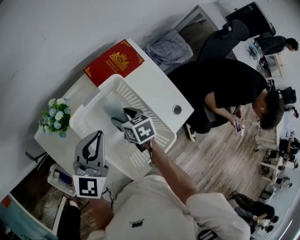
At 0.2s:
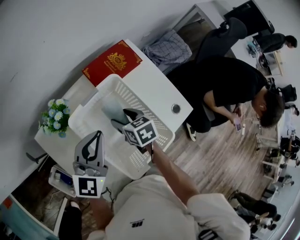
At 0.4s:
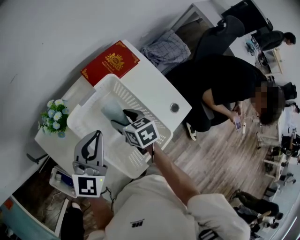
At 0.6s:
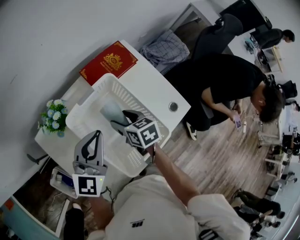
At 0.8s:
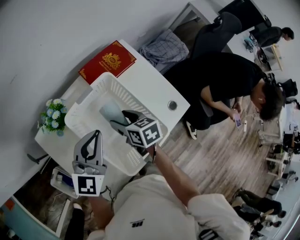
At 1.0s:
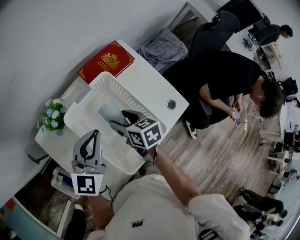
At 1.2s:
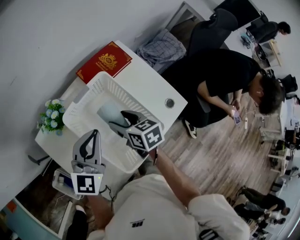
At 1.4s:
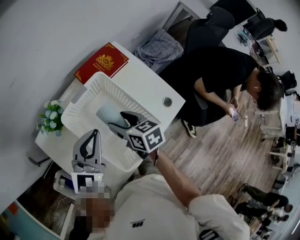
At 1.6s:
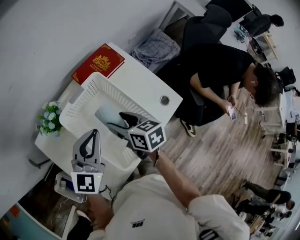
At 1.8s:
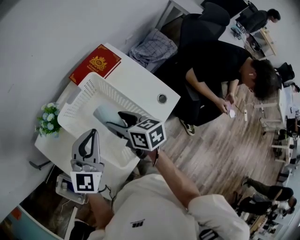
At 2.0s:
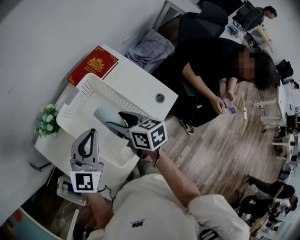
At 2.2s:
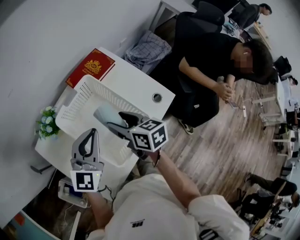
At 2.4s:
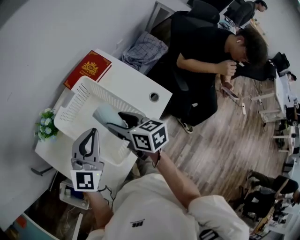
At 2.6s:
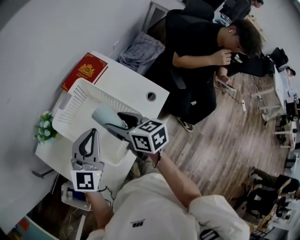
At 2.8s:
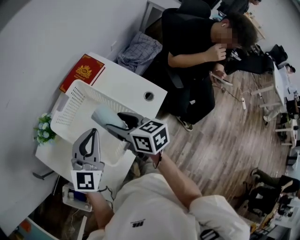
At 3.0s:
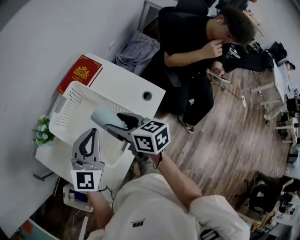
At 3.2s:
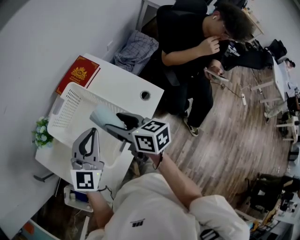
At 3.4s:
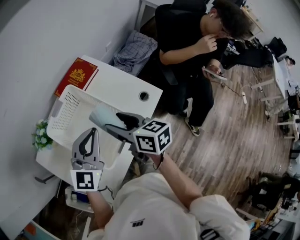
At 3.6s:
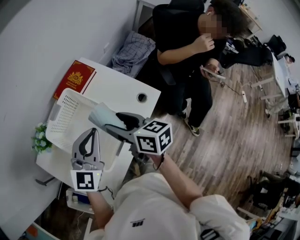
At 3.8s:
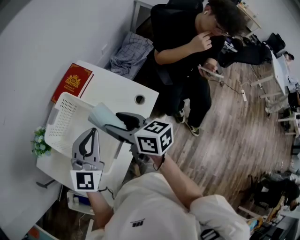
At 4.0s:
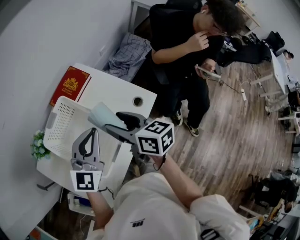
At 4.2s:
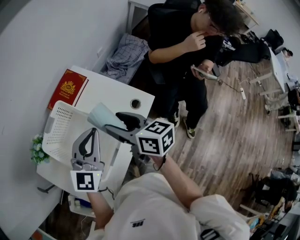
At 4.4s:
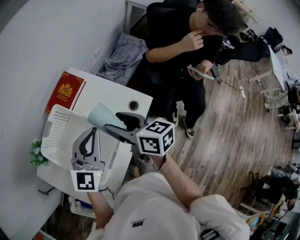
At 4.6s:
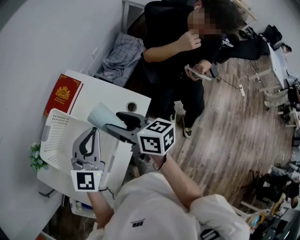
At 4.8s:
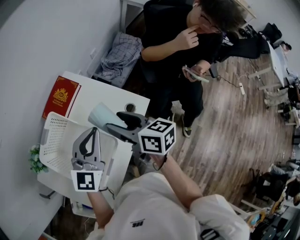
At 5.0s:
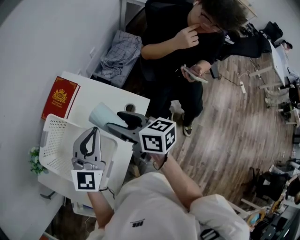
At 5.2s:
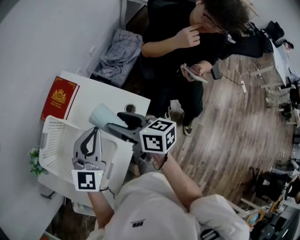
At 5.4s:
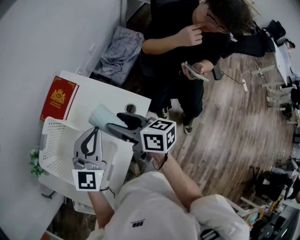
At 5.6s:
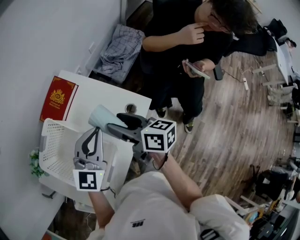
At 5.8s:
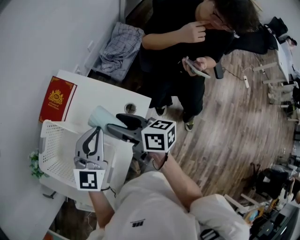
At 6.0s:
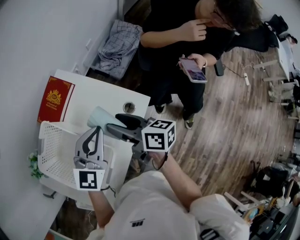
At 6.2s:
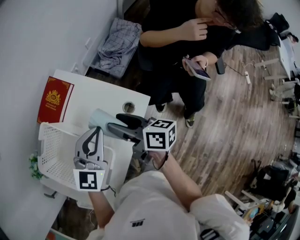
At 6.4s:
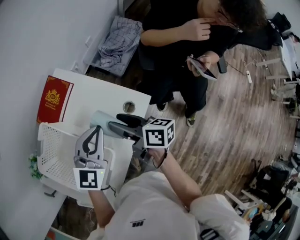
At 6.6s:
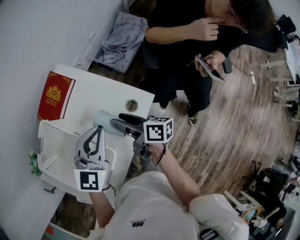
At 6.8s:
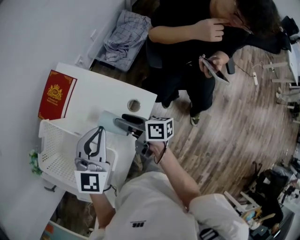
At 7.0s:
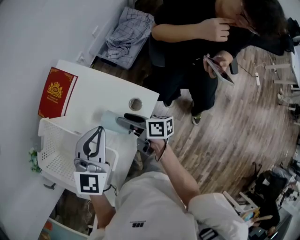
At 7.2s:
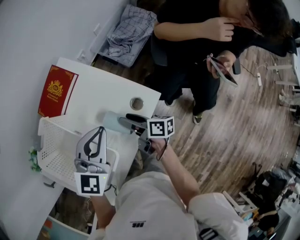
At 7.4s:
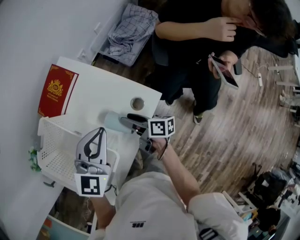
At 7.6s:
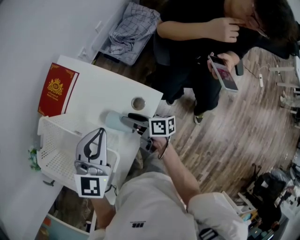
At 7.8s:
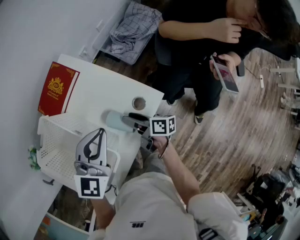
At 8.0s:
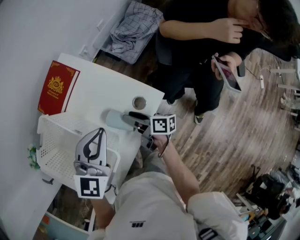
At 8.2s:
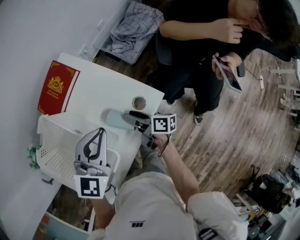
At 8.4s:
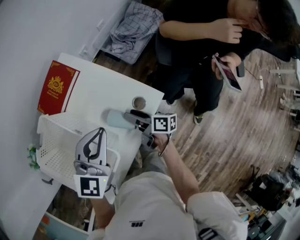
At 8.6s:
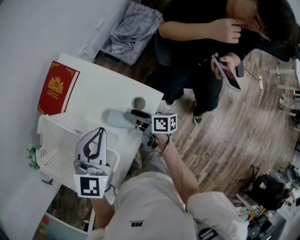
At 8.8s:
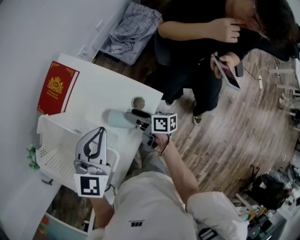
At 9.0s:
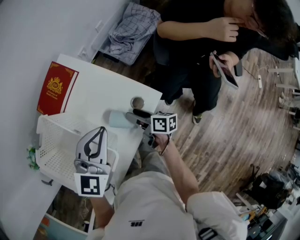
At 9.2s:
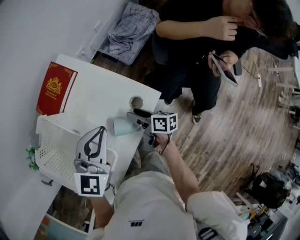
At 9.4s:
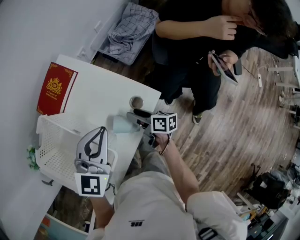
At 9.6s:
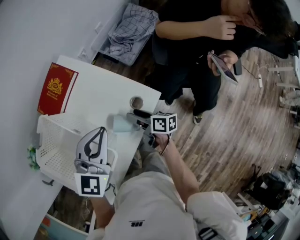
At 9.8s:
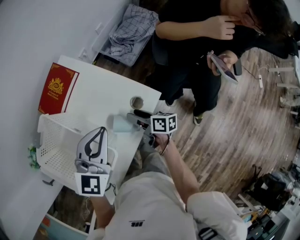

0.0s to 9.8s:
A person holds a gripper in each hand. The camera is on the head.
0.0s to 1.4s: The left gripper changes place by about 5 cm. Meanwhile the right gripper moves upward and backward, about 10 cm.
1.4s to 2.8s: The left gripper heads to the right, covering some 5 cm, while the right gripper travels upward, to the right and backward by approximately 10 cm.
2.8s to 4.2s: Both grippers travel together to the right, some 10 cm.
4.2s to 5.6s: Both grippers travel together to the right and forward, some 10 cm.
5.6s to 7.0s: The right gripper heads downward, covering approximately 15 cm, and swivels approximately 20 degrees.
7.0s to 8.4s: The right gripper moves downward, some 5 cm.
8.4s to 9.8s: The grippers stay close to where they were, moving slightly.

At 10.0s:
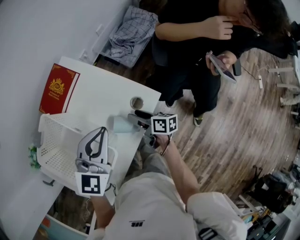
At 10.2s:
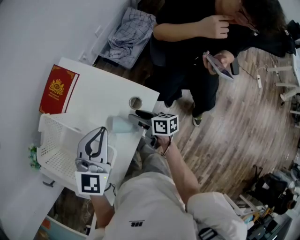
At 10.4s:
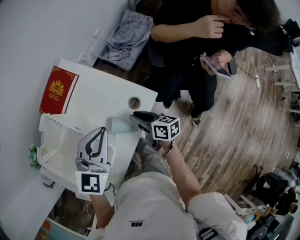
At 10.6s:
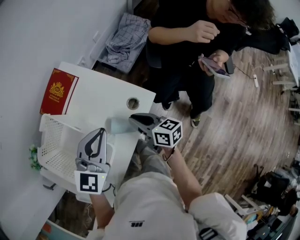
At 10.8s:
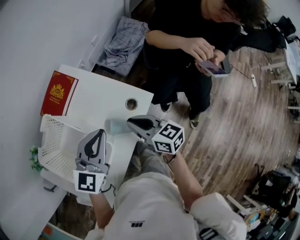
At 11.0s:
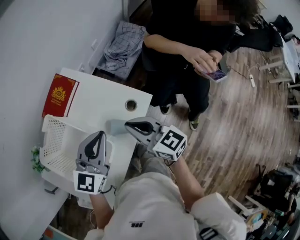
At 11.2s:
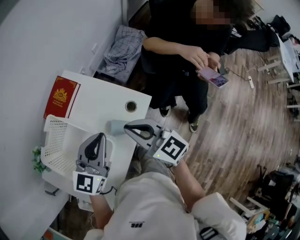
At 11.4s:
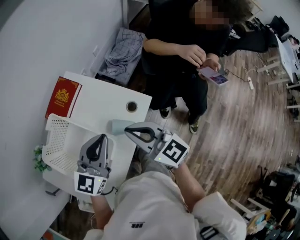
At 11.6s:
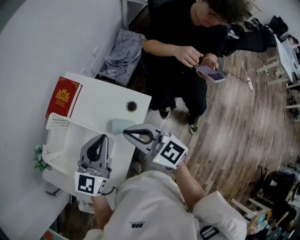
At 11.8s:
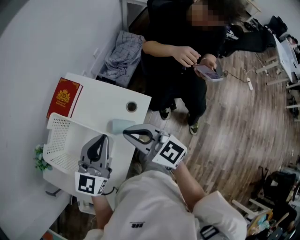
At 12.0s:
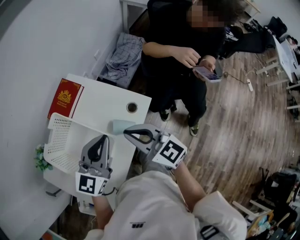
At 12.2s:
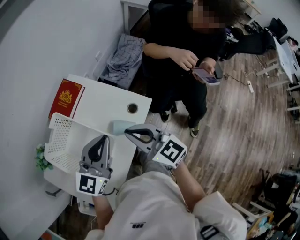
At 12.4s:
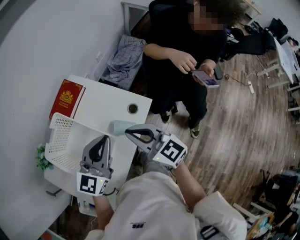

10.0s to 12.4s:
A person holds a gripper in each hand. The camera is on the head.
10.0s to 11.2s: The left gripper is displaced upward by approximately 5 cm; the right gripper travels upward by about 25 cm, rotates around the line of its fingers by approximately 60 degrees, counterclockwise from behind, and closes.
11.2s to 12.4s: The grippers stay close to where they were, moving slightly.

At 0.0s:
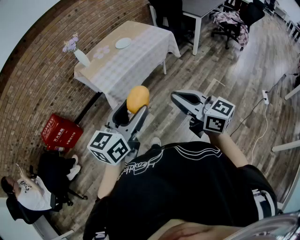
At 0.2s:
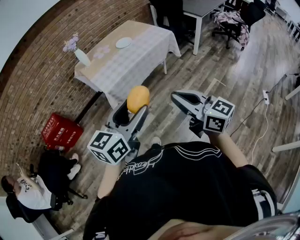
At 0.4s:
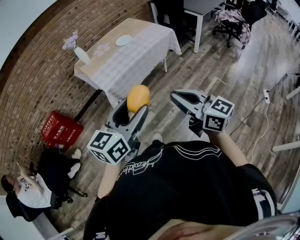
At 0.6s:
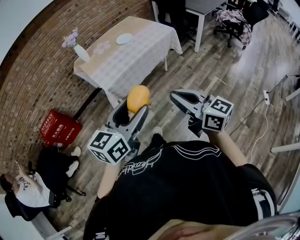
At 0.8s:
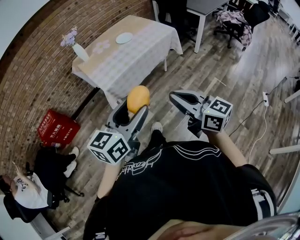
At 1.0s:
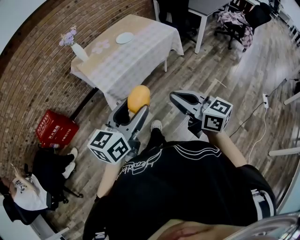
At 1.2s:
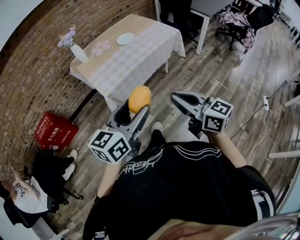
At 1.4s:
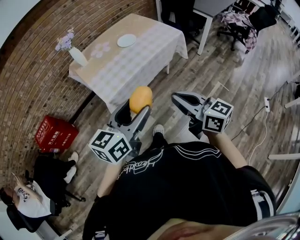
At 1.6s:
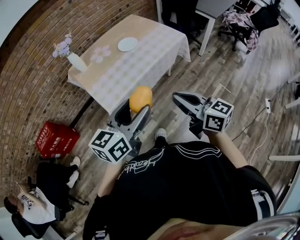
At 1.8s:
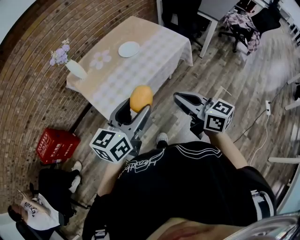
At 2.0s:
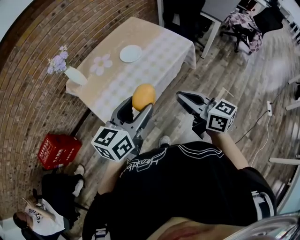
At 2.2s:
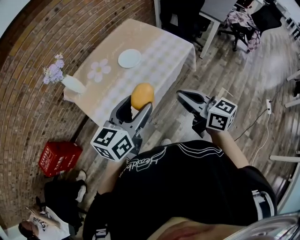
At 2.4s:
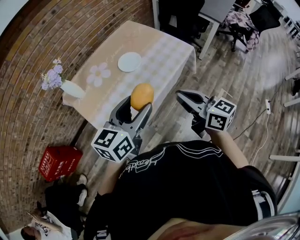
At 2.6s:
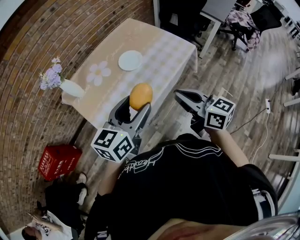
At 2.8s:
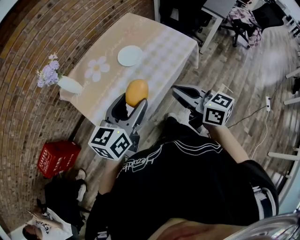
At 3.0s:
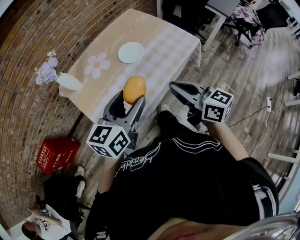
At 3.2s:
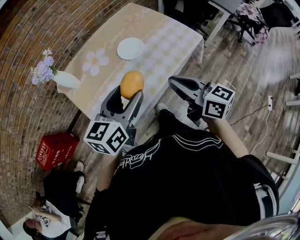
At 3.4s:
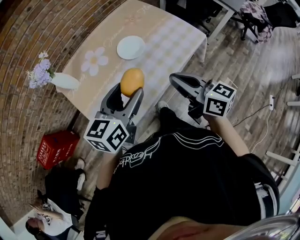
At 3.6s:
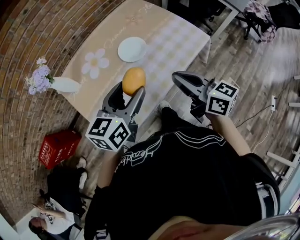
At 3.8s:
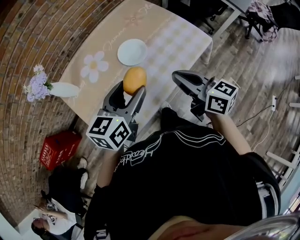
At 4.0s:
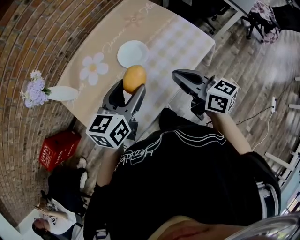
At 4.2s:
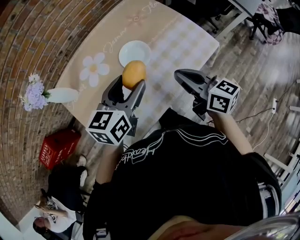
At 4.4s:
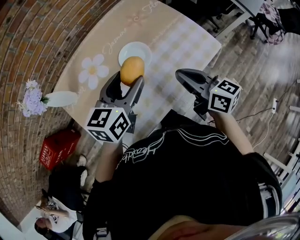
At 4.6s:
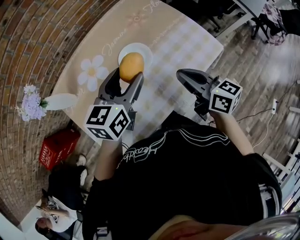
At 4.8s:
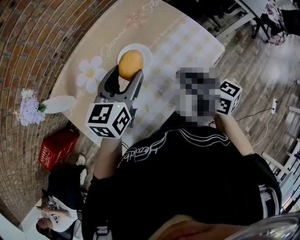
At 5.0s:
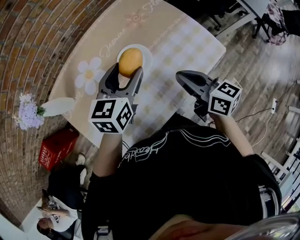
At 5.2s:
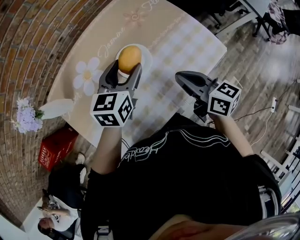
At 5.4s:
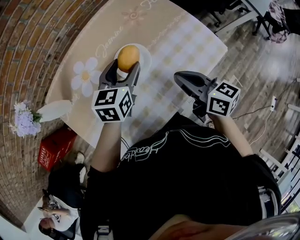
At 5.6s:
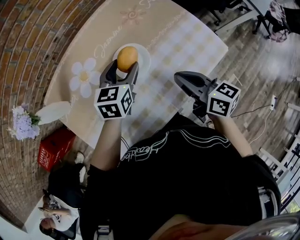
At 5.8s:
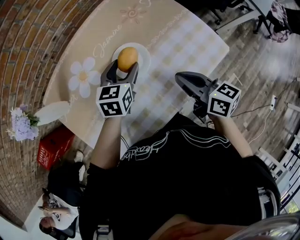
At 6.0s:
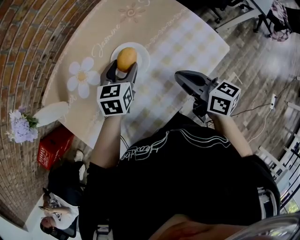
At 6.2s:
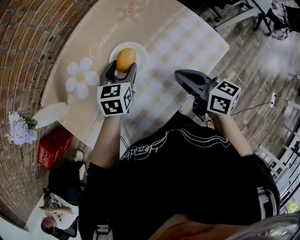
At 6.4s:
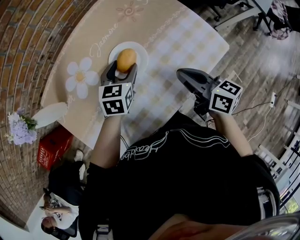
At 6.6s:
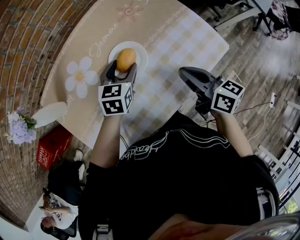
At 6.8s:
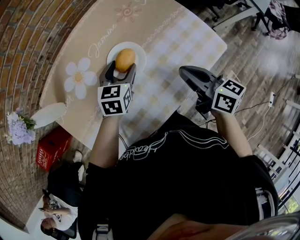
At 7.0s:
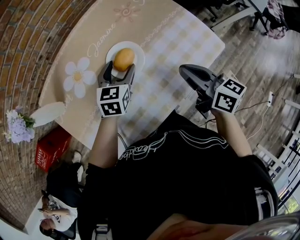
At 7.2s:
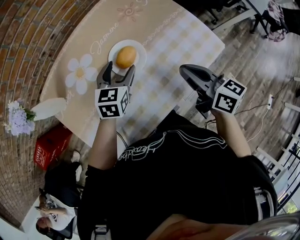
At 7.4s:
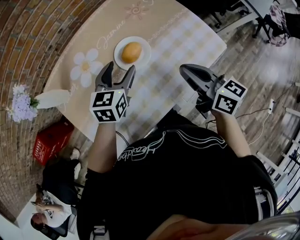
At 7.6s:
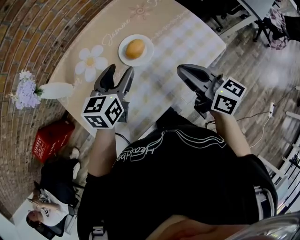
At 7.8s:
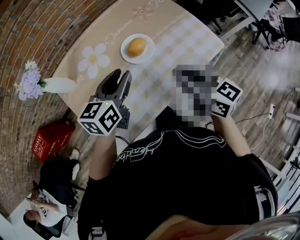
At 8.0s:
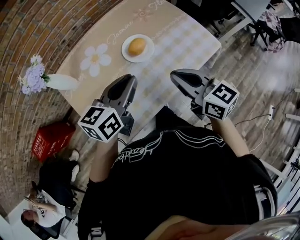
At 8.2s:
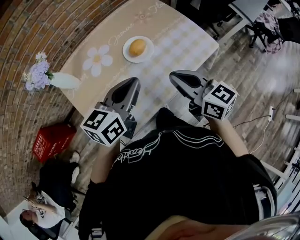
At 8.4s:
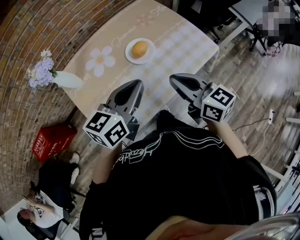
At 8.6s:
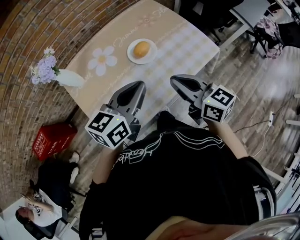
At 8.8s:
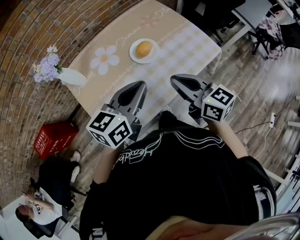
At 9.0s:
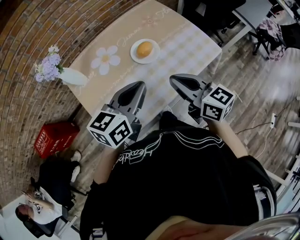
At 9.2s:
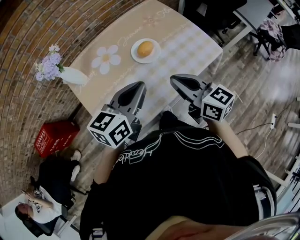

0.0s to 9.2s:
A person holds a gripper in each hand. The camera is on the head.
0.0s to 1.6s: Both grippers travel together forward, roughly 25 cm.
1.6s to 3.0s: Both grippers travel together forward, approximately 25 cm.
3.0s to 4.6s: The left gripper is displaced forward by some 25 cm. The right gripper shifts about 25 cm forward and downward.
4.6s to 6.2s: The right gripper moves downward, some 5 cm; the left gripper is displaced downward and forward by some 20 cm.
6.2s to 7.6s: The left gripper heads upward and backward, covering approximately 15 cm. Meanwhile the right gripper travels upward by roughly 10 cm.
7.6s to 9.2s: The right gripper is displaced backward and to the left by some 10 cm. Meanwhile the left gripper is displaced backward and upward by roughly 20 cm, and closes its fingers.

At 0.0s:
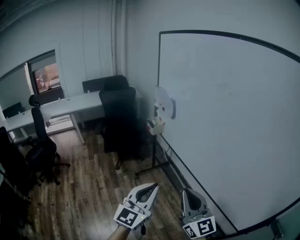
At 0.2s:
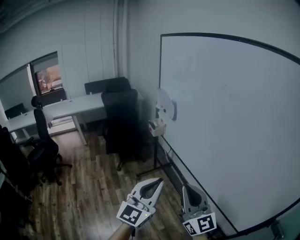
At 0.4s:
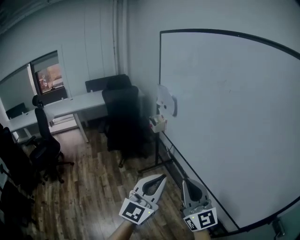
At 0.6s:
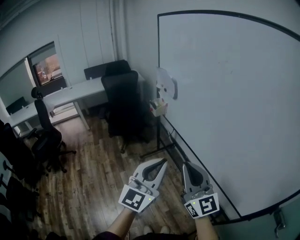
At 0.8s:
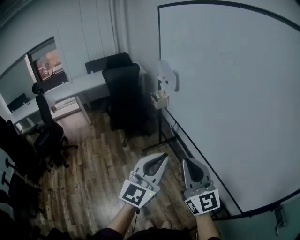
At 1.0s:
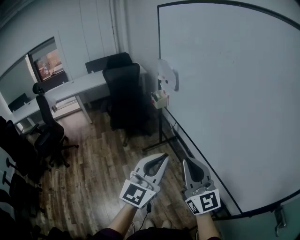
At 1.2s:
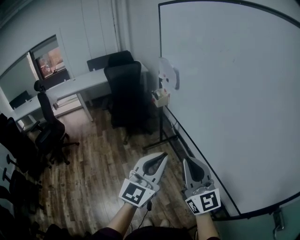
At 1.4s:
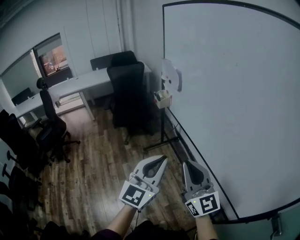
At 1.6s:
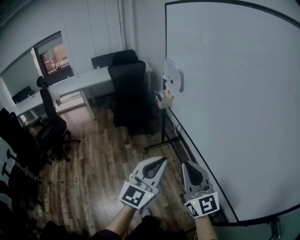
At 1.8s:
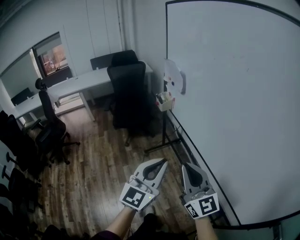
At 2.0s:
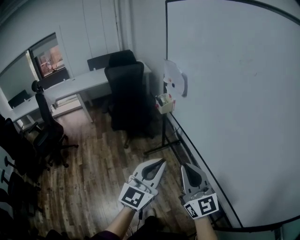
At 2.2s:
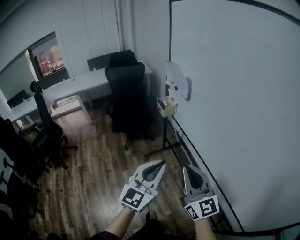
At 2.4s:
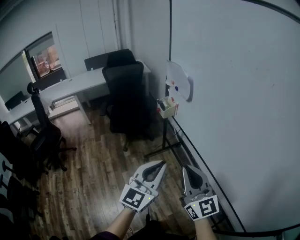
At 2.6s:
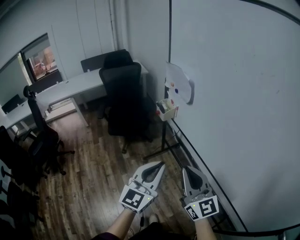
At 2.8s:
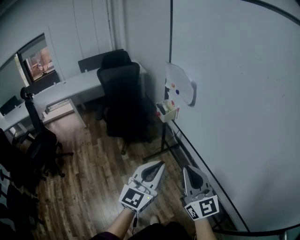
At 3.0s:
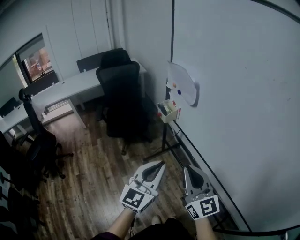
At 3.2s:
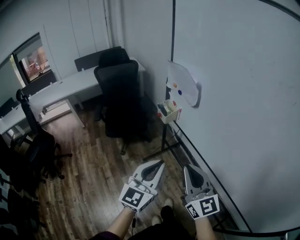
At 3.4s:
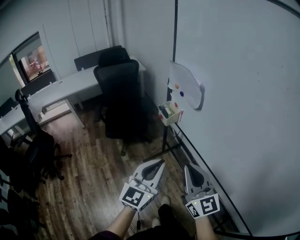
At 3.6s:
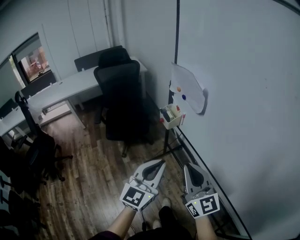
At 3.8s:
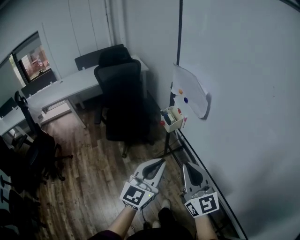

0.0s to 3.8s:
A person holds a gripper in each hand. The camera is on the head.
0.0s to 1.2s: The left gripper shifts by approximately 5 cm.
1.2s to 2.6s: Both grippers travel together forward and to the left, approximately 20 cm.
2.6s to 3.8s: Both grippers travel together forward, approximately 15 cm.
